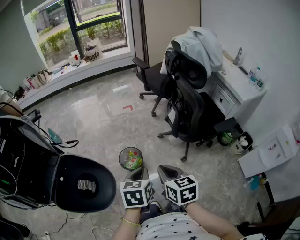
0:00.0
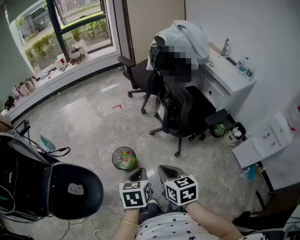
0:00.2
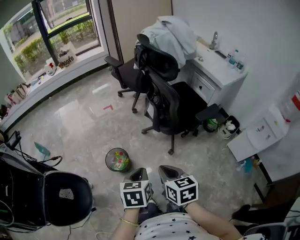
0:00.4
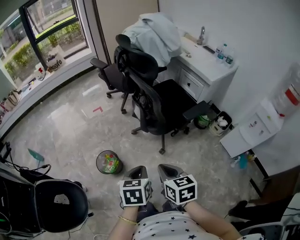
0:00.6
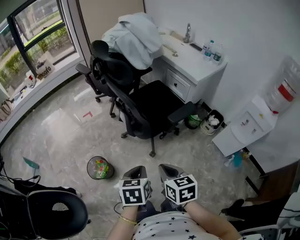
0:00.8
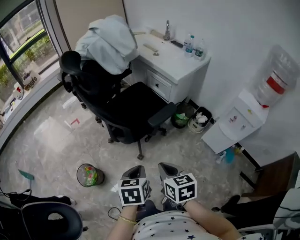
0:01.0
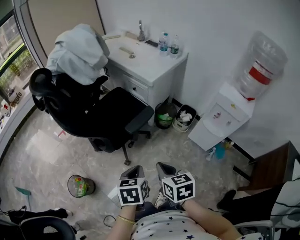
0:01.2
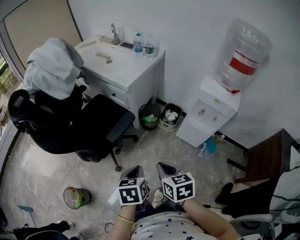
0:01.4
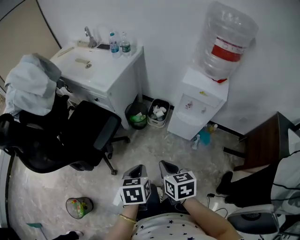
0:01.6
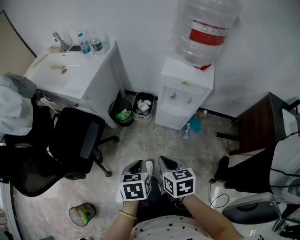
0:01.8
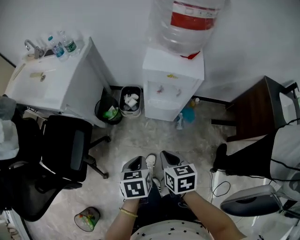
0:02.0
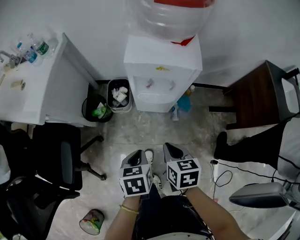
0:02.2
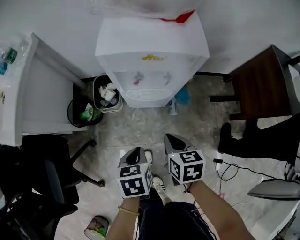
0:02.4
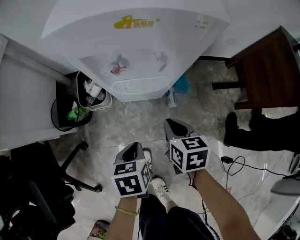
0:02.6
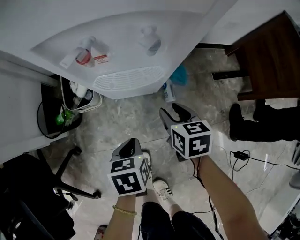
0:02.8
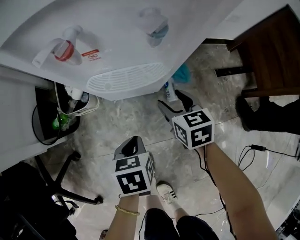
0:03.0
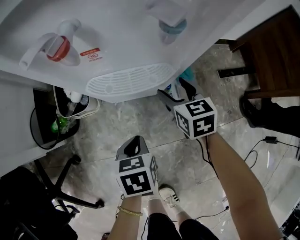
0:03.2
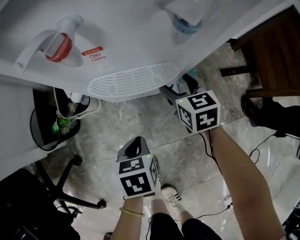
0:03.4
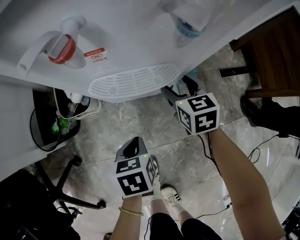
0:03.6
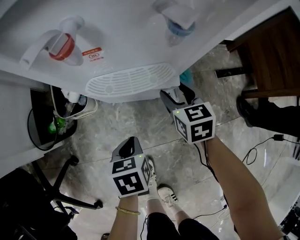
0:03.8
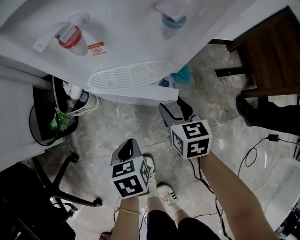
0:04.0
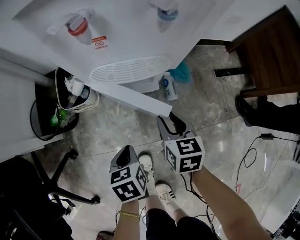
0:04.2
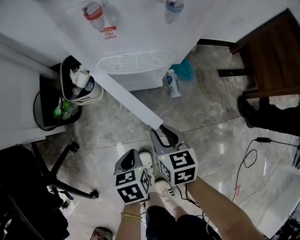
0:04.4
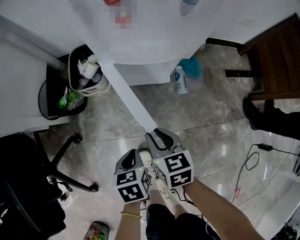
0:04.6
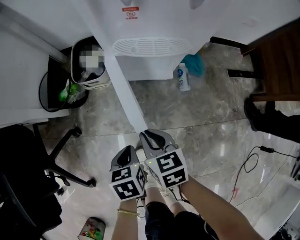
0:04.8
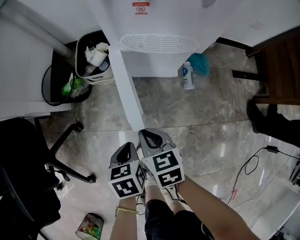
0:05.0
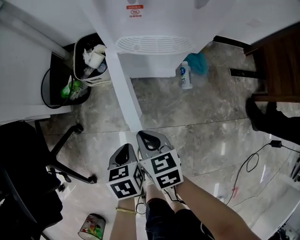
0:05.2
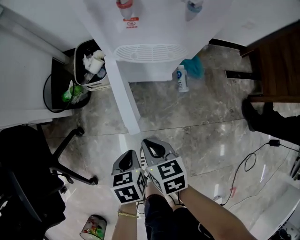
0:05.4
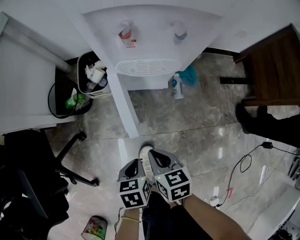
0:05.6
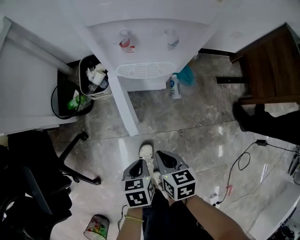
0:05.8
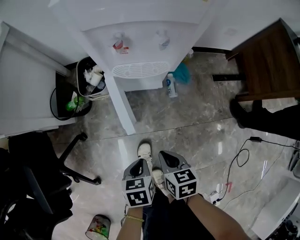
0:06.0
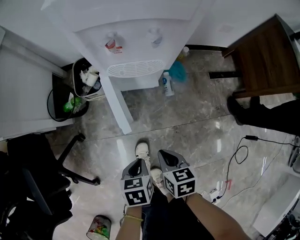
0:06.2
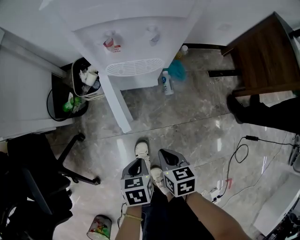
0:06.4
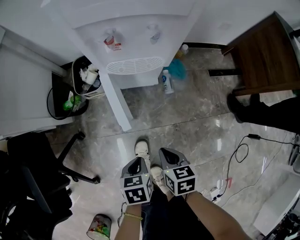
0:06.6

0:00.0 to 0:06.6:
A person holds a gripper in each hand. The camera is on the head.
0:00.0 to 0:01.6: Both grippers are carried roughly 60 cm. The left gripper turns by about 50 degrees. The right gripper rotates about 50 degrees.
0:01.6 to 0:03.2: Both grippers move downward, roughly 50 cm. The left gripper turns by some 40 degrees. The right gripper rotates approximately 30 degrees, and opens its fingers.
0:03.2 to 0:05.0: The left gripper goes about 15 cm backward and to the left, while the right gripper shifts about 30 cm backward and to the left, and closes its fingers.
0:05.0 to 0:06.6: The right gripper goes roughly 15 cm to the right, backward and upward; the left gripper shifts roughly 15 cm upward, to the right and backward.

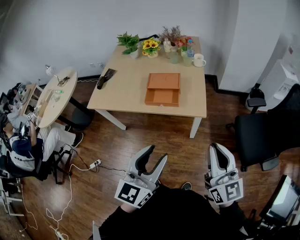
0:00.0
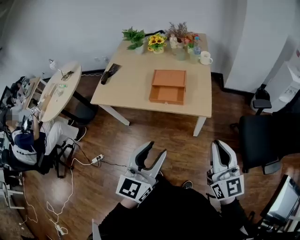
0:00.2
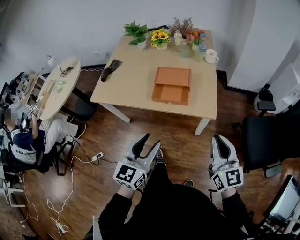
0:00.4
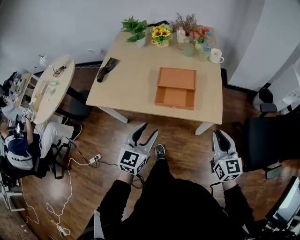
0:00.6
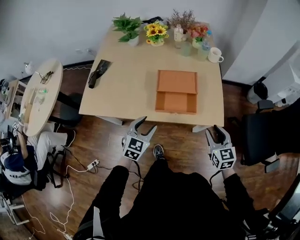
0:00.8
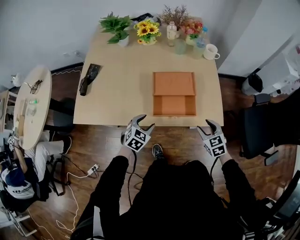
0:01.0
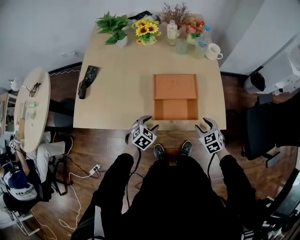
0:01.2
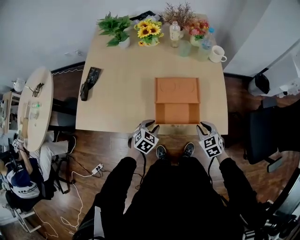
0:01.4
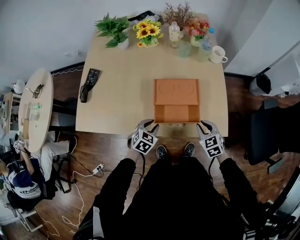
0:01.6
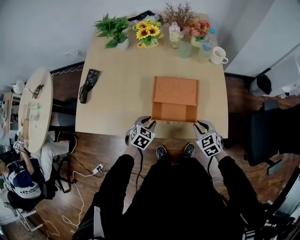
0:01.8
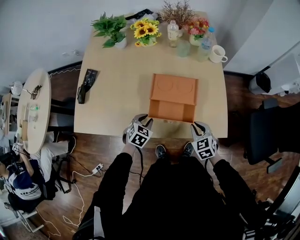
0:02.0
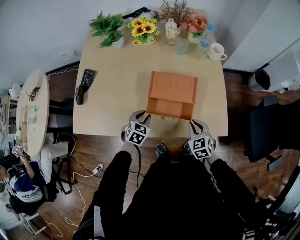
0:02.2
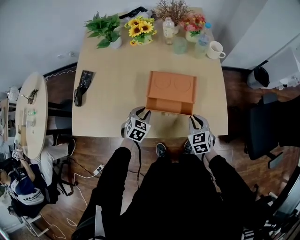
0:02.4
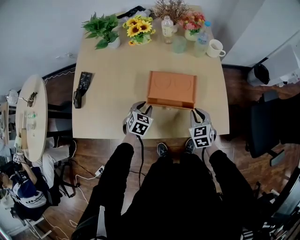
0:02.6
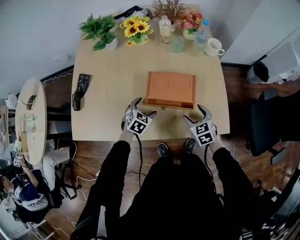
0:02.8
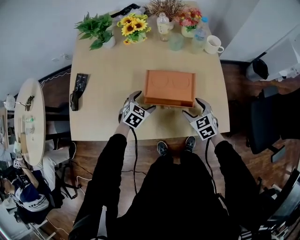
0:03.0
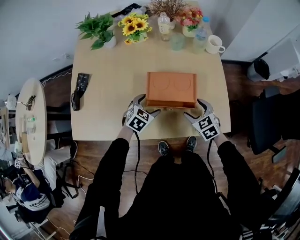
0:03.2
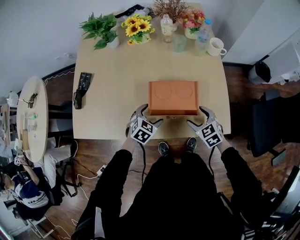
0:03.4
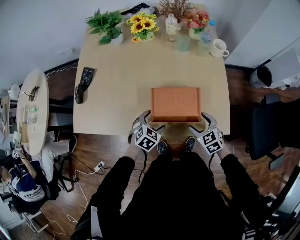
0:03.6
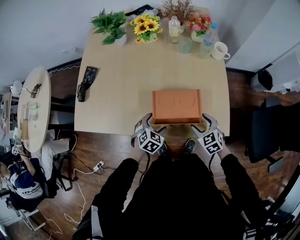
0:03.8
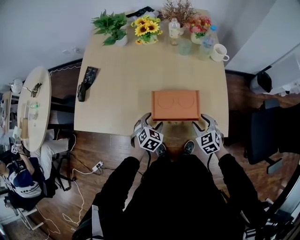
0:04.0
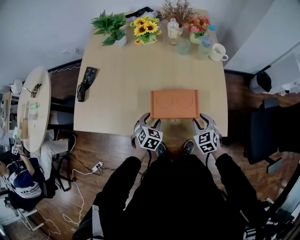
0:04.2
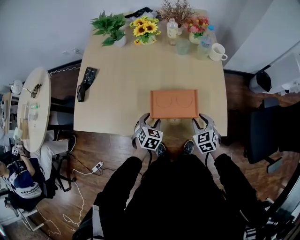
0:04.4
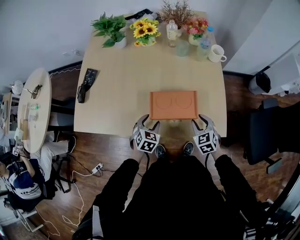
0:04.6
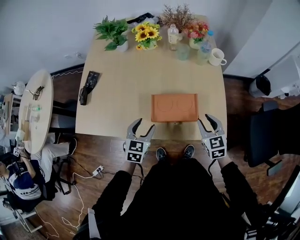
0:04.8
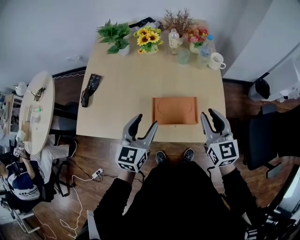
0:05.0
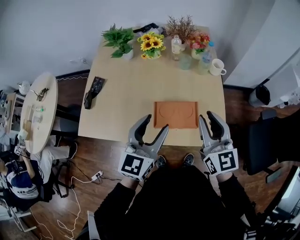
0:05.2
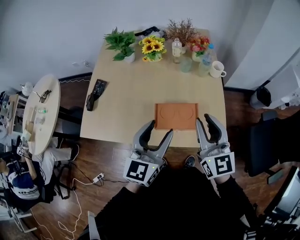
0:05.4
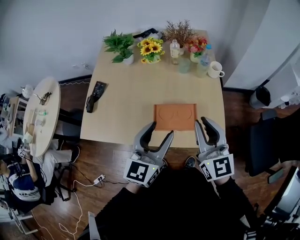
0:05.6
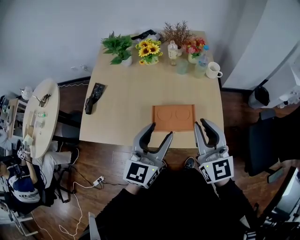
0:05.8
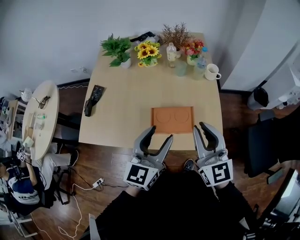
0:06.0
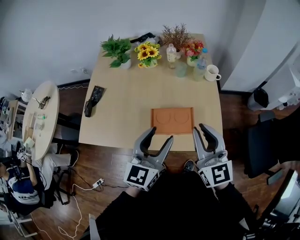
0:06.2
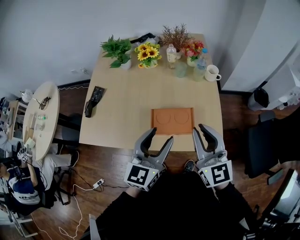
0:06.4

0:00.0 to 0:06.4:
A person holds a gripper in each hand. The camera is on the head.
0:00.0 to 0:01.6: The two grippers go about 50 cm downward, forward and to the left. The left gripper tips its fingers downward by about 50 degrees. The right gripper points its fingers roughly 50 degrees further downward, and opens and closes again.
0:01.6 to 0:03.2: The left gripper is displaced forward by approximately 10 cm, and opens up; the right gripper goes some 5 cm forward, and opens its fingers.
0:03.2 to 0:04.8: The right gripper is displaced upward by roughly 10 cm, and closes up, while the left gripper travels backward and upward by approximately 15 cm, turns by approximately 30 degrees, and closes its fingers.
0:04.8 to 0:06.4: The right gripper shifts some 25 cm upward, and tips its fingers upward by approximately 30 degrees, while the left gripper travels upward and to the right by about 25 cm, and turns by roughly 30 degrees.

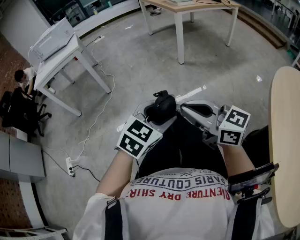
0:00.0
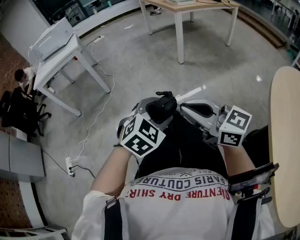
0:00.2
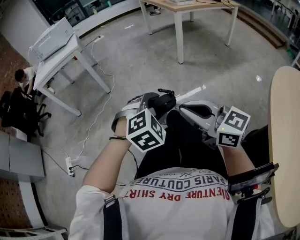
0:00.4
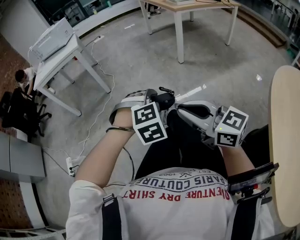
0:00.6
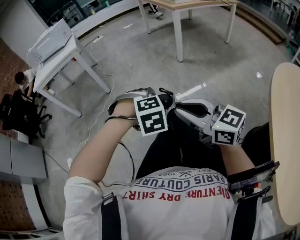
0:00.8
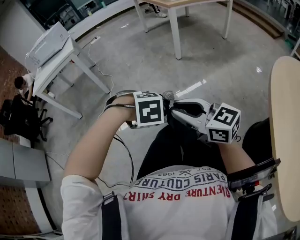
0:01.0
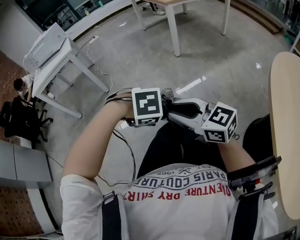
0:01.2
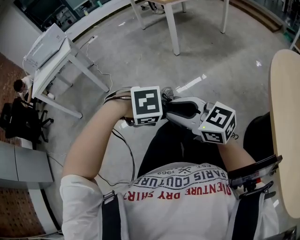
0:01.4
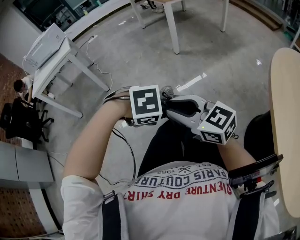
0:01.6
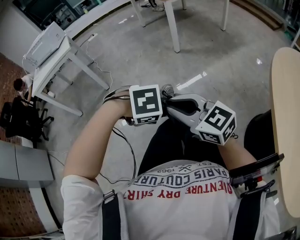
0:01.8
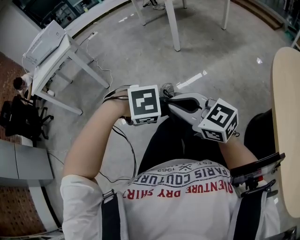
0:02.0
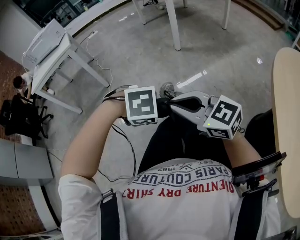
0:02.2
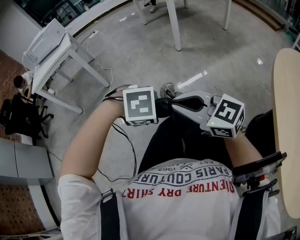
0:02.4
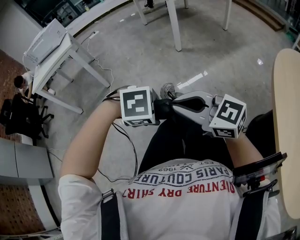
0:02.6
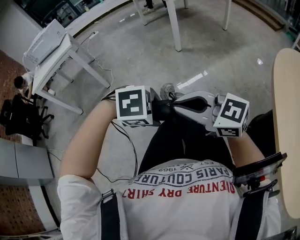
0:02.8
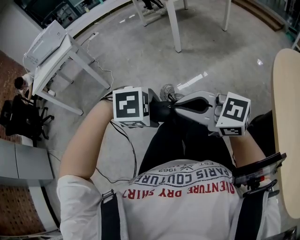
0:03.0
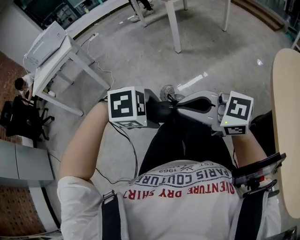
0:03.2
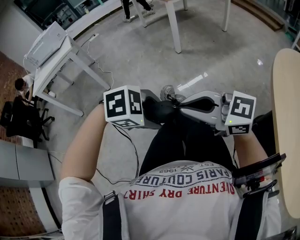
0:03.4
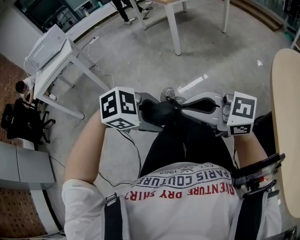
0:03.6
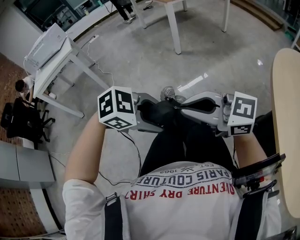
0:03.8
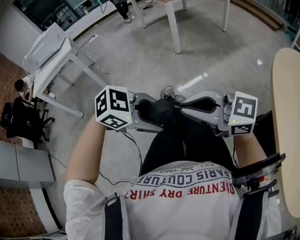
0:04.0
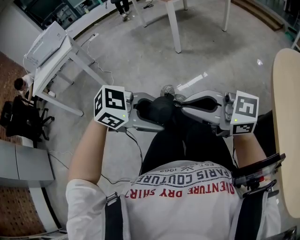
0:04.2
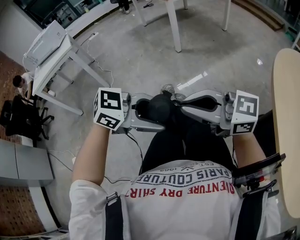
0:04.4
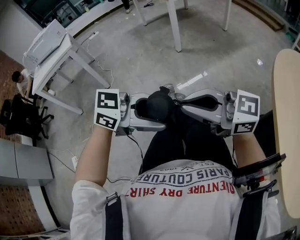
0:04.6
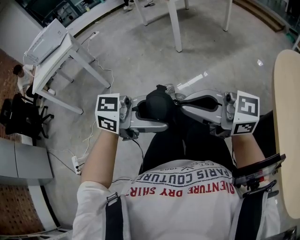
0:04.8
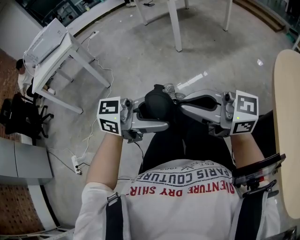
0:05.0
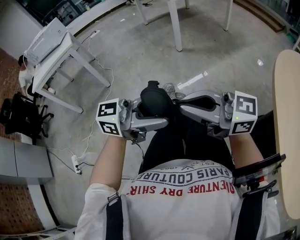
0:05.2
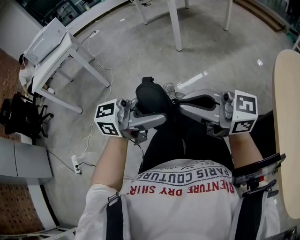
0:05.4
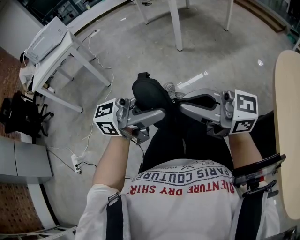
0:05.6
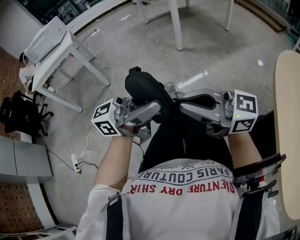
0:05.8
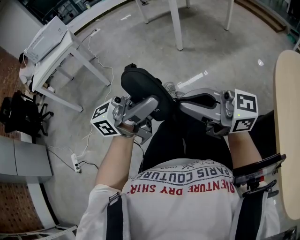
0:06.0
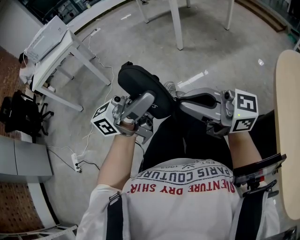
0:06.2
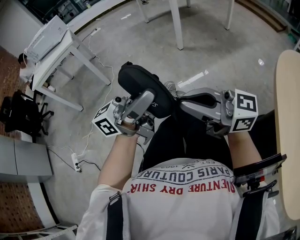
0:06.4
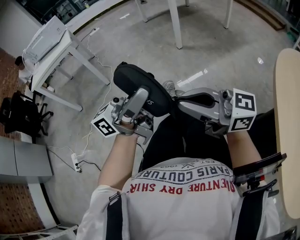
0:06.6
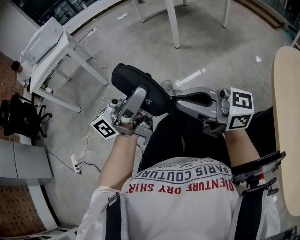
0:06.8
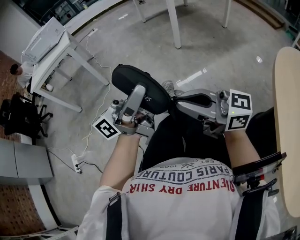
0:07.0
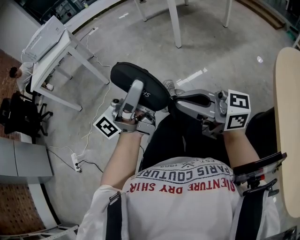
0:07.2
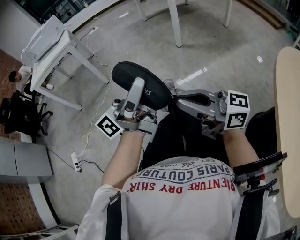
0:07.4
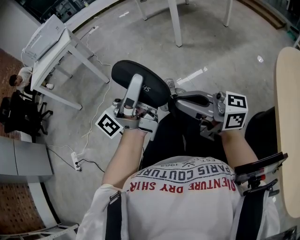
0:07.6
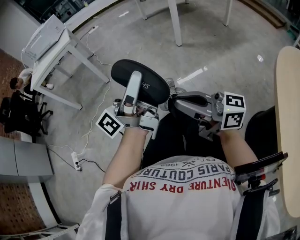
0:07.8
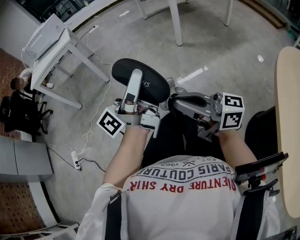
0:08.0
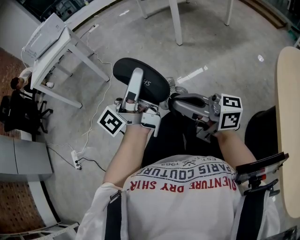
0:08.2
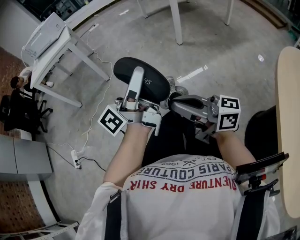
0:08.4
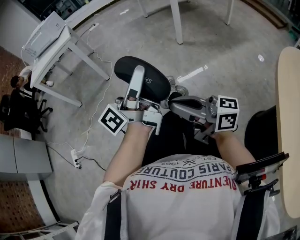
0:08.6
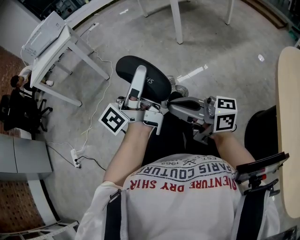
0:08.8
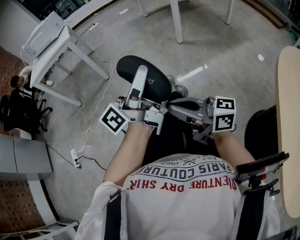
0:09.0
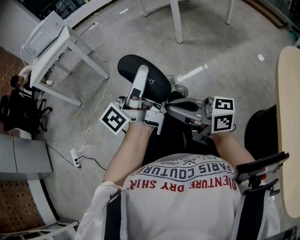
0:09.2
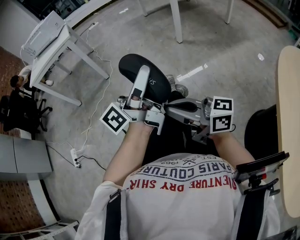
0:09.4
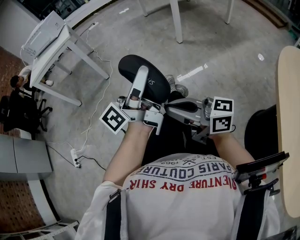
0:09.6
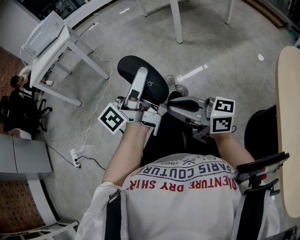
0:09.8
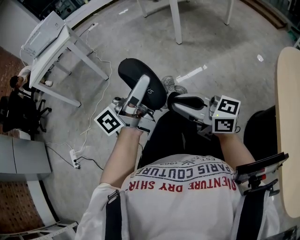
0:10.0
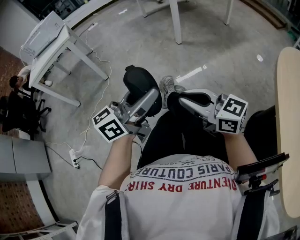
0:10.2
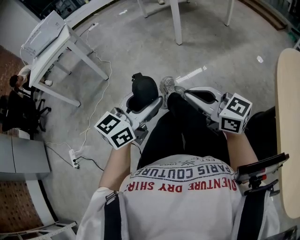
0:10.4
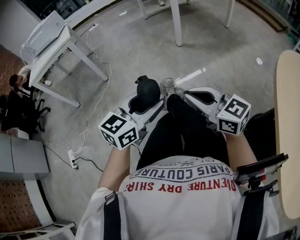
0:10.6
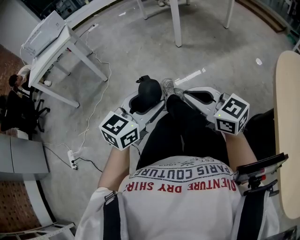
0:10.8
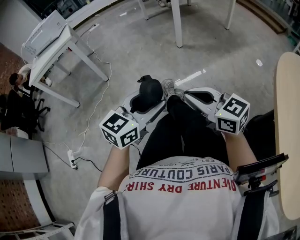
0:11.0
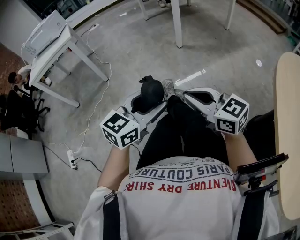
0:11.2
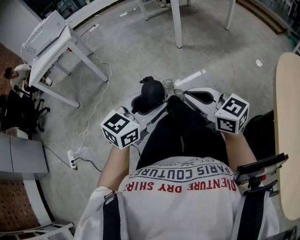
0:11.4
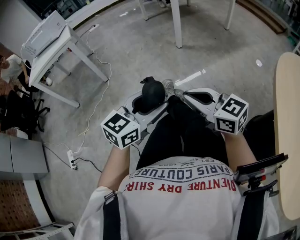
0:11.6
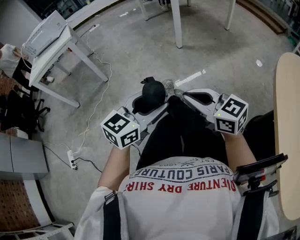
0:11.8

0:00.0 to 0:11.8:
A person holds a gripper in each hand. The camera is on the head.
0:00.0 to 0:01.4: The right gripper opens its fingers, while the left gripper heads downward, covering approximately 5 cm, and angles its fingers downward, by some 60 degrees.
0:01.4 to 0:03.0: The right gripper closes.
0:03.0 to 0:04.4: The left gripper moves upward, some 5 cm, and tips its fingers upward by roughly 50 degrees.
0:04.4 to 0:06.0: The left gripper shifts approximately 10 cm upward, and tips its fingers upward by roughly 50 degrees.
0:06.0 to 0:07.4: The left gripper shifts by roughly 5 cm, and rotates roughly 30 degrees.
0:07.4 to 0:08.8: The right gripper shifts by approximately 5 cm.
0:08.8 to 0:10.4: The right gripper moves to the right, some 5 cm, and turns by roughly 30 degrees. Meanwhile the left gripper shifts approximately 10 cm downward, and angles its fingers downward, by roughly 30 degrees.
0:10.4 to 0:11.8: There are only small adjustments of the grippers.
